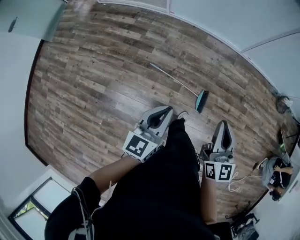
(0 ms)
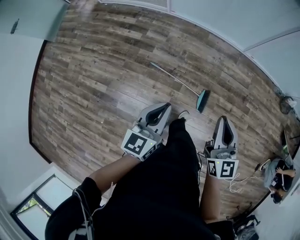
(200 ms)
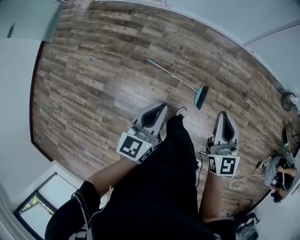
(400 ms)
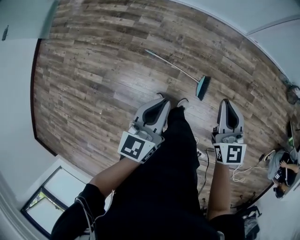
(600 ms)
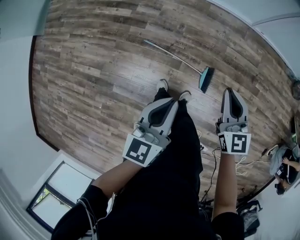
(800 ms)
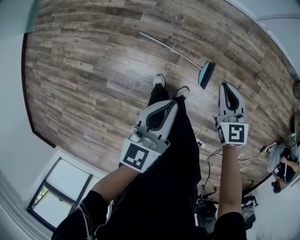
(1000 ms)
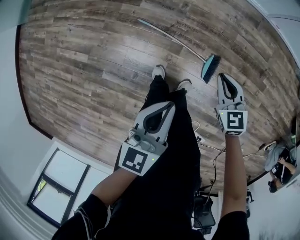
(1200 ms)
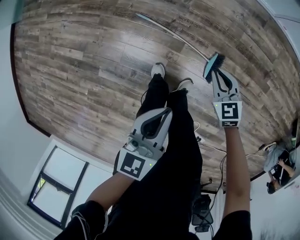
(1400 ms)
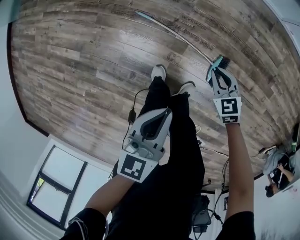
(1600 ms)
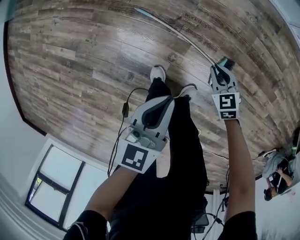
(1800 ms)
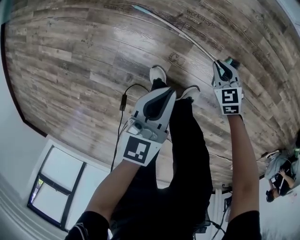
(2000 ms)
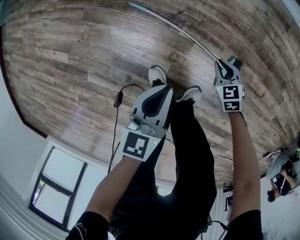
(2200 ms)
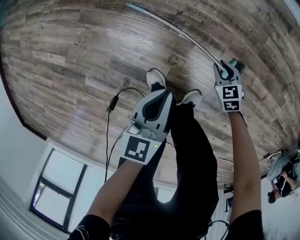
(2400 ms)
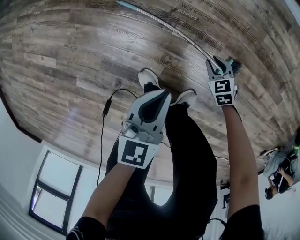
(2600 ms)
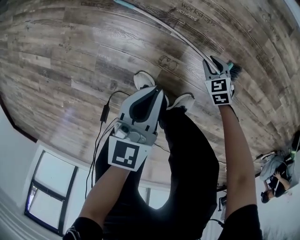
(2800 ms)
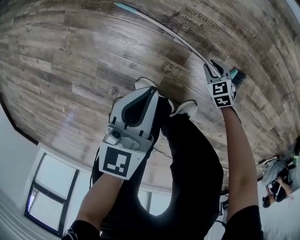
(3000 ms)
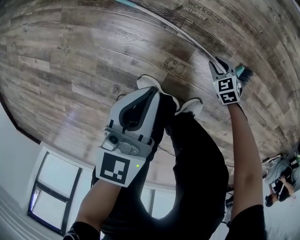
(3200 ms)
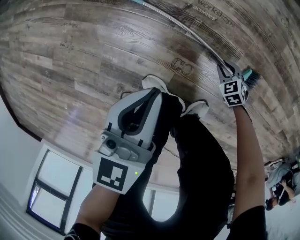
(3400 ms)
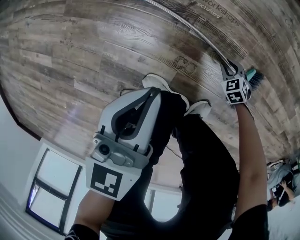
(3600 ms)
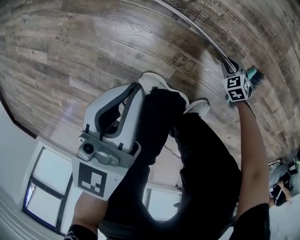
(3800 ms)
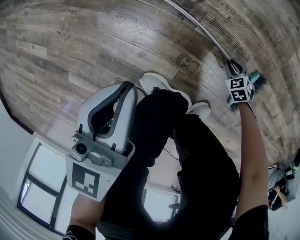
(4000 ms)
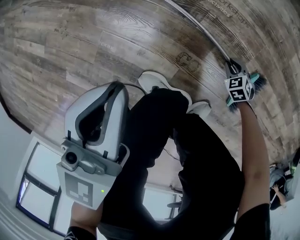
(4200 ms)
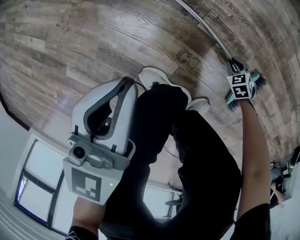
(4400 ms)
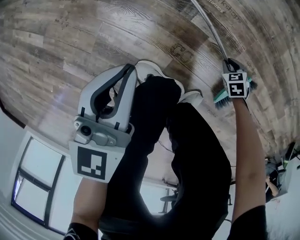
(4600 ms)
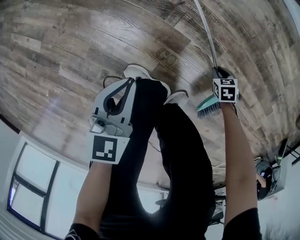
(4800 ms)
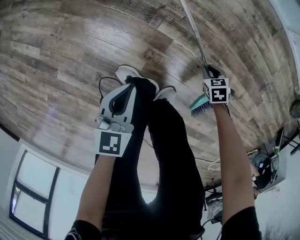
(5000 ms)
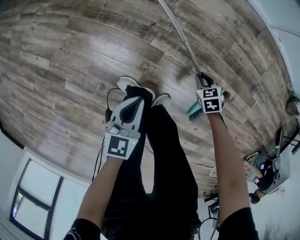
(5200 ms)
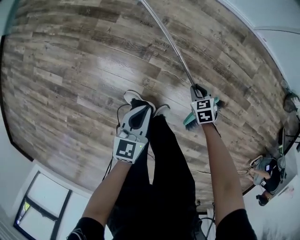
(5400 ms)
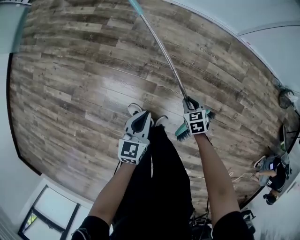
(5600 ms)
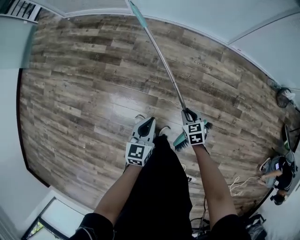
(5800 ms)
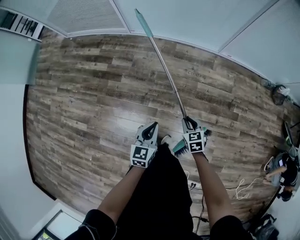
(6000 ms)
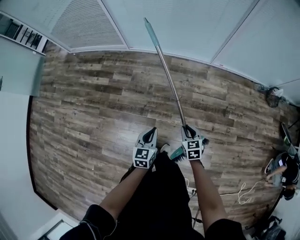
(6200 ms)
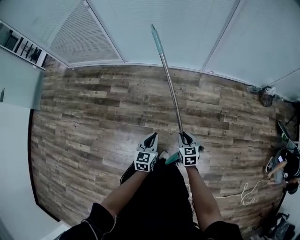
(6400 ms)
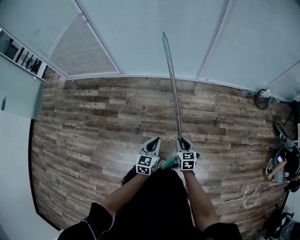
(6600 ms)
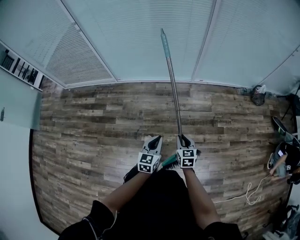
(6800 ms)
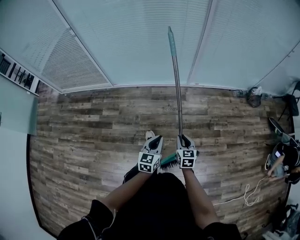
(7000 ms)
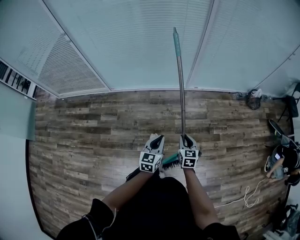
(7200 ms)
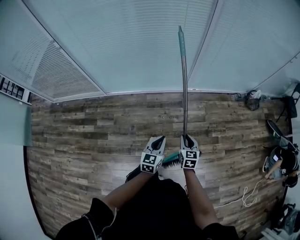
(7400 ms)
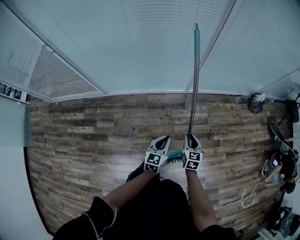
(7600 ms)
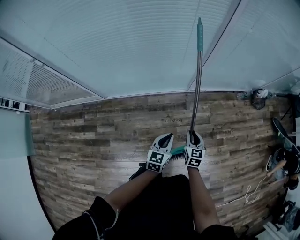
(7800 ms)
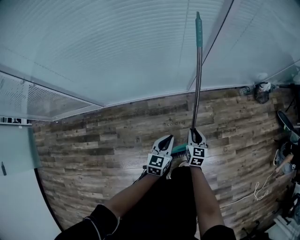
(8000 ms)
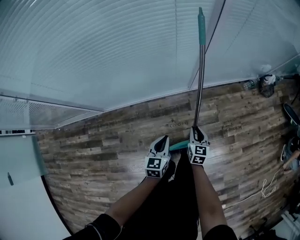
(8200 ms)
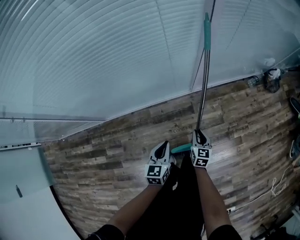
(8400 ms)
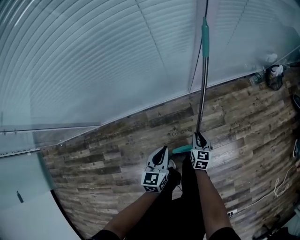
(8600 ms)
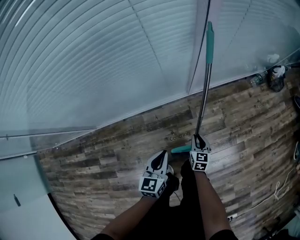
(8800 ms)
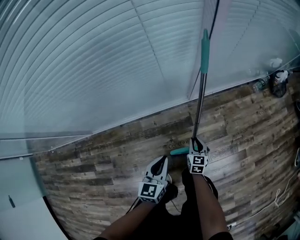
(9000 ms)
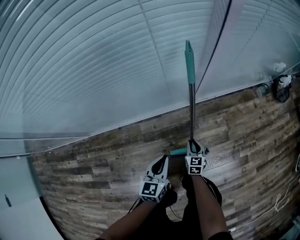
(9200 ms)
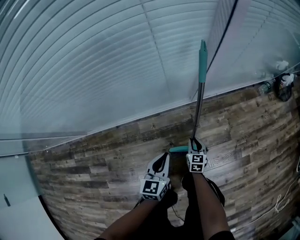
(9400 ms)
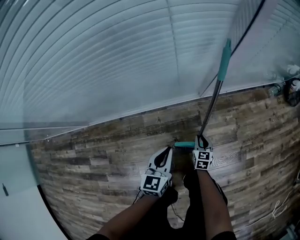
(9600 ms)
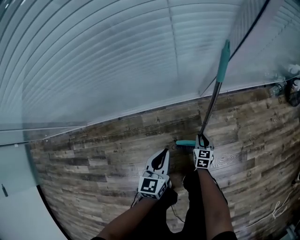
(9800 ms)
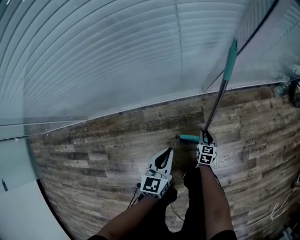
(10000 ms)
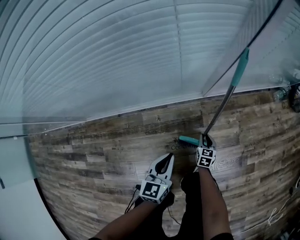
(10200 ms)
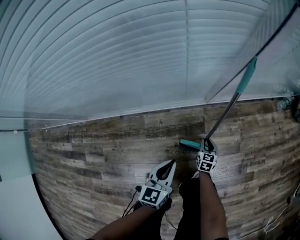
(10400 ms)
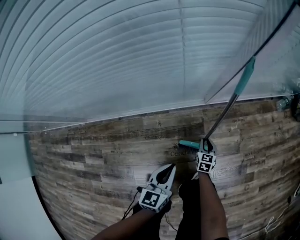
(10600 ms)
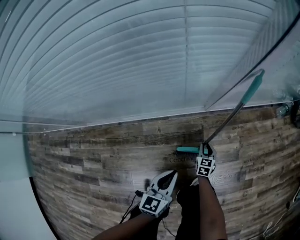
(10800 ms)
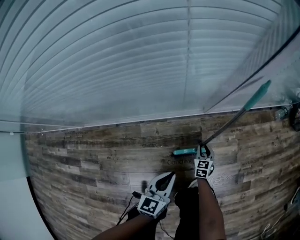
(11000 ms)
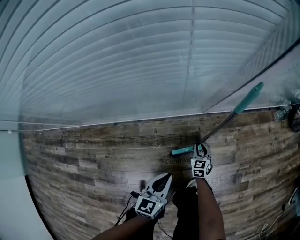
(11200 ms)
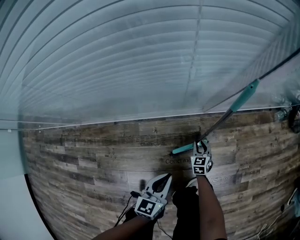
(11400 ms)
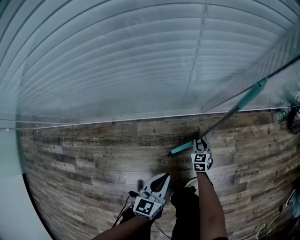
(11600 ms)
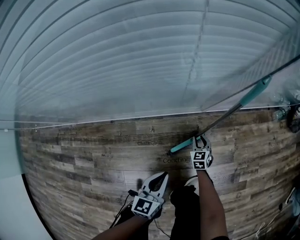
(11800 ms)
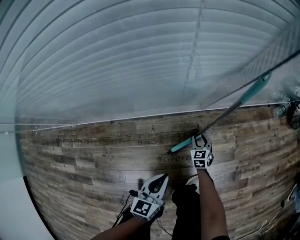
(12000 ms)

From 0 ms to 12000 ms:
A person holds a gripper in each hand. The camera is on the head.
From 0 ms to 1600 ms: The left gripper is displaced downward by some 30 cm, while the right gripper heads downward, covering about 60 cm, and angles its fingers downward, by some 40 degrees.
From 1600 ms to 3000 ms: The two grippers go some 30 cm downward.
From 3000 ms to 4400 ms: The left gripper shifts by about 10 cm. The right gripper is displaced downward by some 10 cm.
From 4400 ms to 6000 ms: The right gripper travels upward by roughly 60 cm, and swivels roughly 50 degrees; the left gripper heads upward, covering some 35 cm.
From 6000 ms to 7600 ms: The left gripper moves approximately 30 cm, and changes its angle by some 20 degrees. Meanwhile the right gripper moves some 30 cm, and turns by about 40 degrees.
From 7600 ms to 9000 ms: The left gripper goes some 30 cm forward and downward. Meanwhile the right gripper goes roughly 40 cm downward and forward.
From 9000 ms to 10400 ms: The two grippers go about 15 cm downward.
From 10400 ms to 12000 ms: The right gripper travels forward by roughly 5 cm, and swivels approximately 20 degrees.

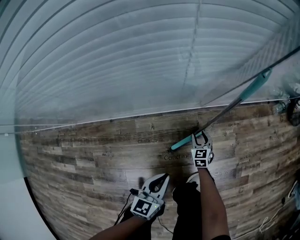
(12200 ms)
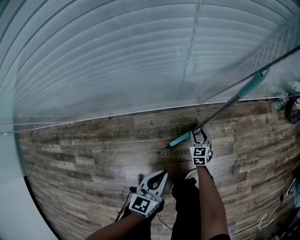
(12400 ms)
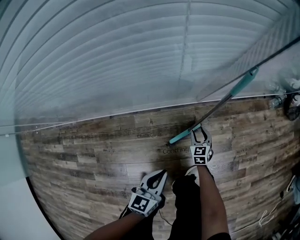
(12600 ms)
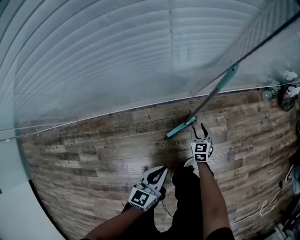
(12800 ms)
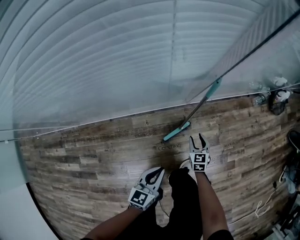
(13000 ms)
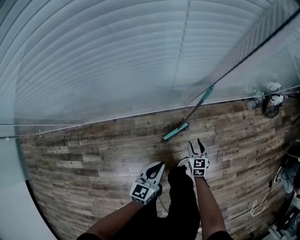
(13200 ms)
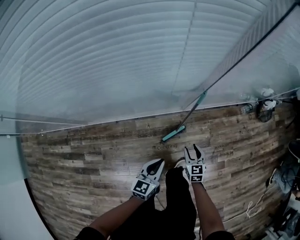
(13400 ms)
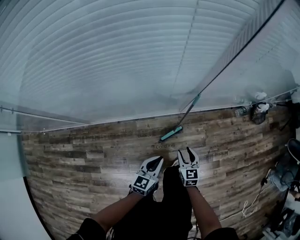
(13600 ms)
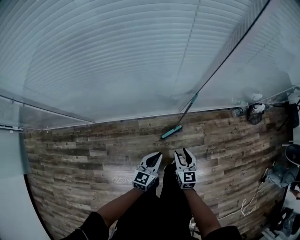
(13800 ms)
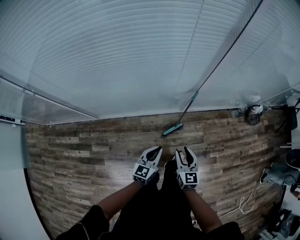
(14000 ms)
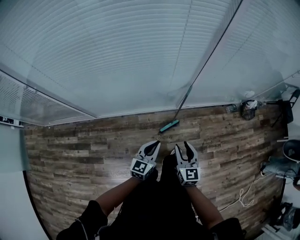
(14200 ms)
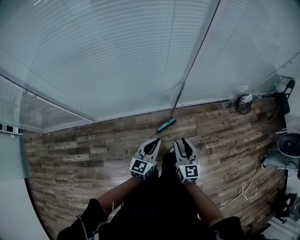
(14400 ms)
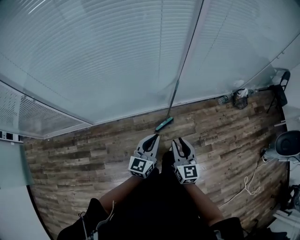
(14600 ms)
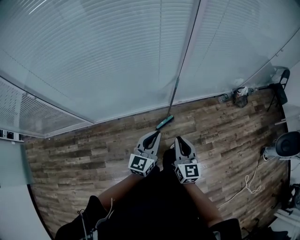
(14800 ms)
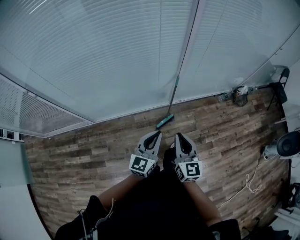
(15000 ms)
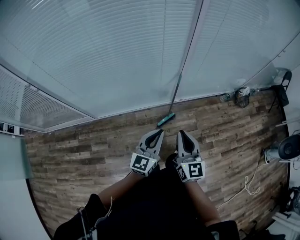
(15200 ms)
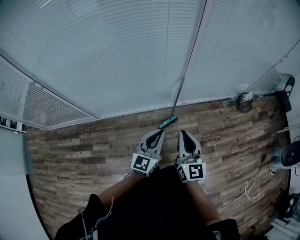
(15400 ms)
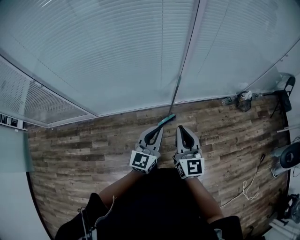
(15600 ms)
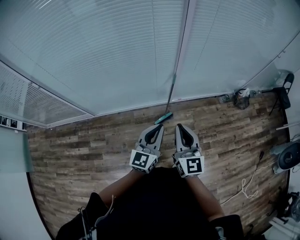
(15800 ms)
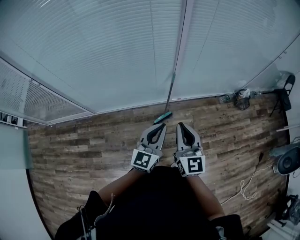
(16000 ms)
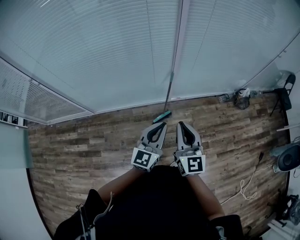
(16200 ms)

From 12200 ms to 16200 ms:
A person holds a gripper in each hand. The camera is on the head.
From 12200 ms to 13600 ms: The two grippers go approximately 40 cm upward.
From 13600 ms to 14800 ms: The left gripper goes about 25 cm upward. Meanwhile the right gripper shifts roughly 35 cm upward and backward, swivels roughly 20 degrees, and closes.
From 14800 ms to 16200 ms: The right gripper heads upward and to the right, covering some 15 cm. Meanwhile the left gripper travels to the right and upward by some 15 cm.

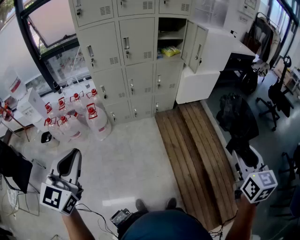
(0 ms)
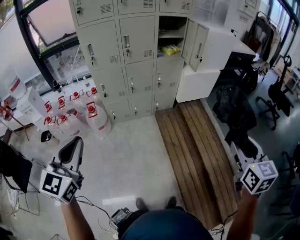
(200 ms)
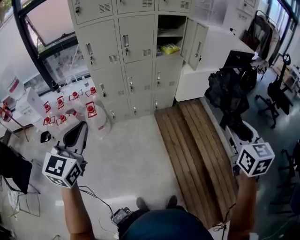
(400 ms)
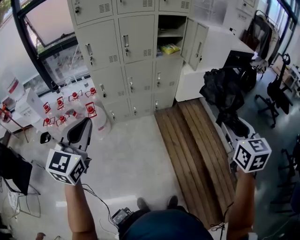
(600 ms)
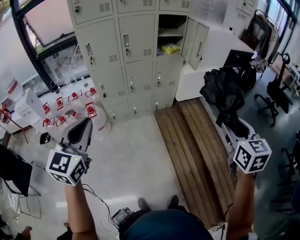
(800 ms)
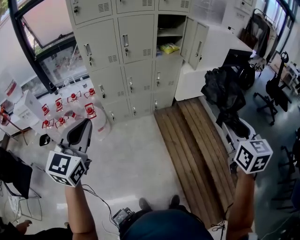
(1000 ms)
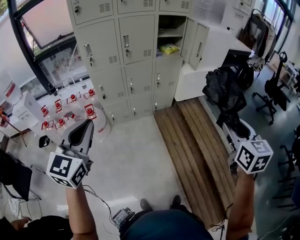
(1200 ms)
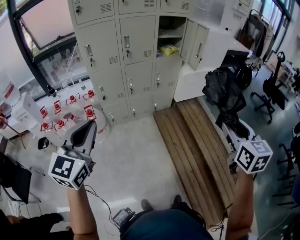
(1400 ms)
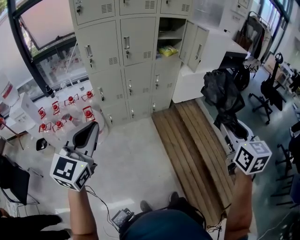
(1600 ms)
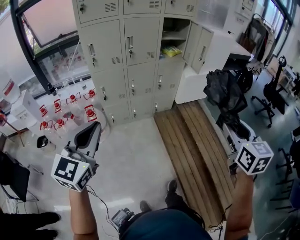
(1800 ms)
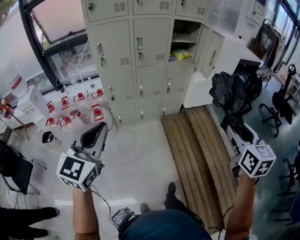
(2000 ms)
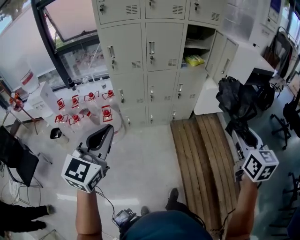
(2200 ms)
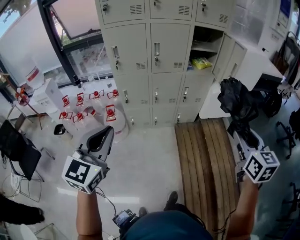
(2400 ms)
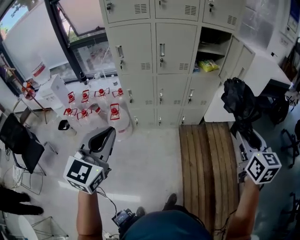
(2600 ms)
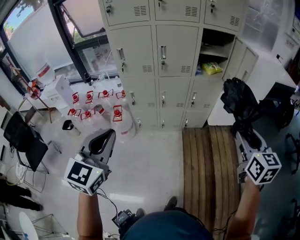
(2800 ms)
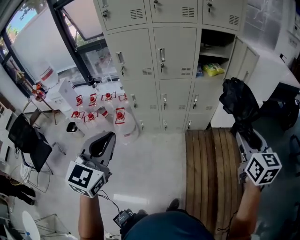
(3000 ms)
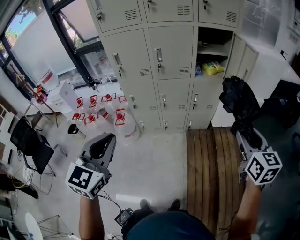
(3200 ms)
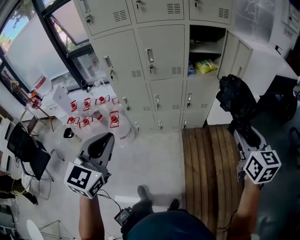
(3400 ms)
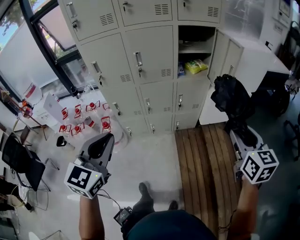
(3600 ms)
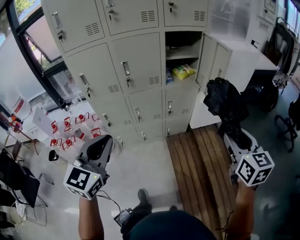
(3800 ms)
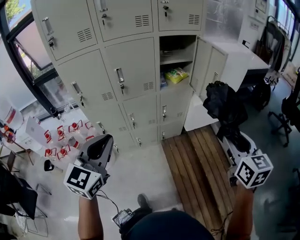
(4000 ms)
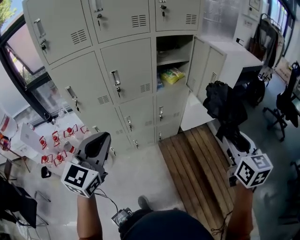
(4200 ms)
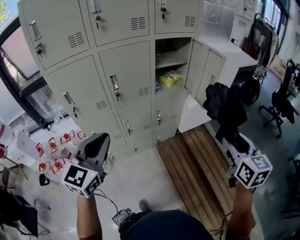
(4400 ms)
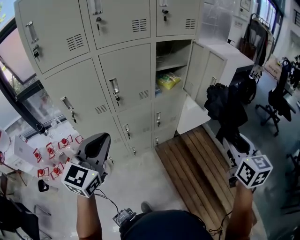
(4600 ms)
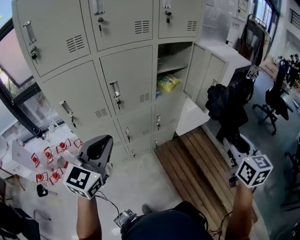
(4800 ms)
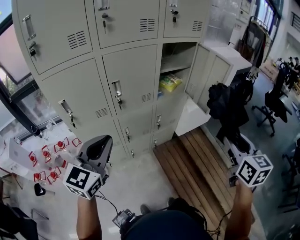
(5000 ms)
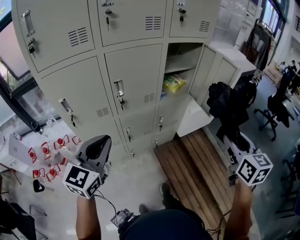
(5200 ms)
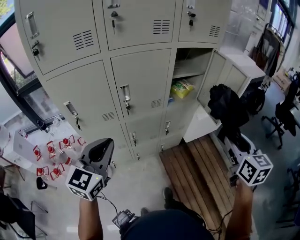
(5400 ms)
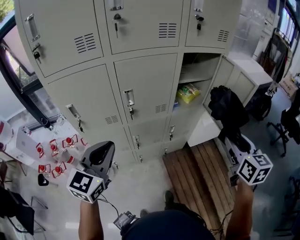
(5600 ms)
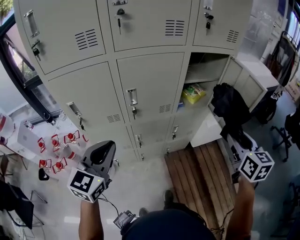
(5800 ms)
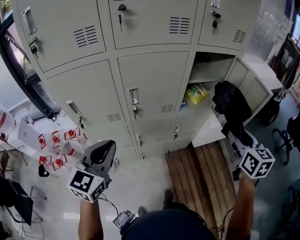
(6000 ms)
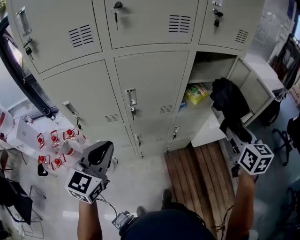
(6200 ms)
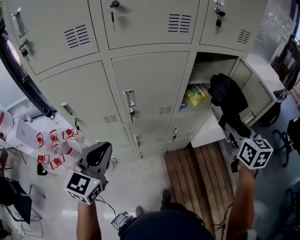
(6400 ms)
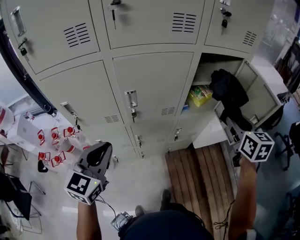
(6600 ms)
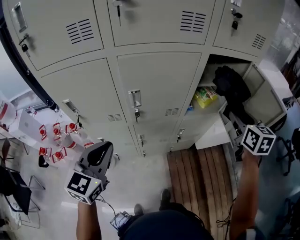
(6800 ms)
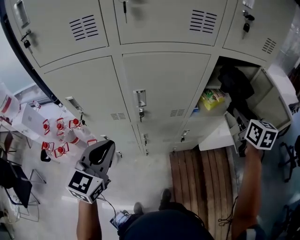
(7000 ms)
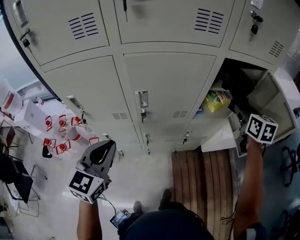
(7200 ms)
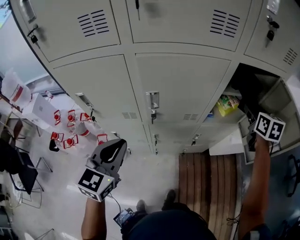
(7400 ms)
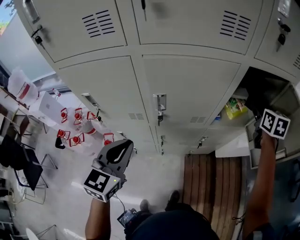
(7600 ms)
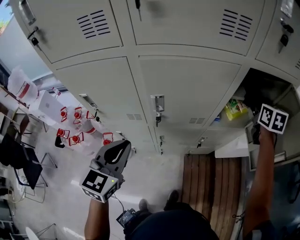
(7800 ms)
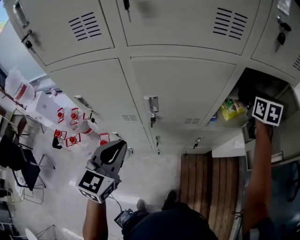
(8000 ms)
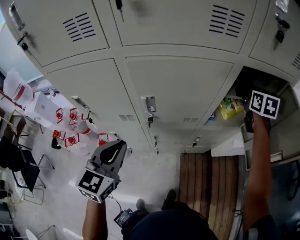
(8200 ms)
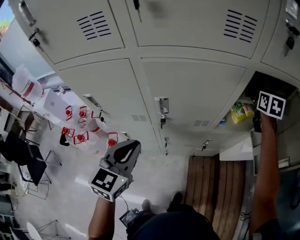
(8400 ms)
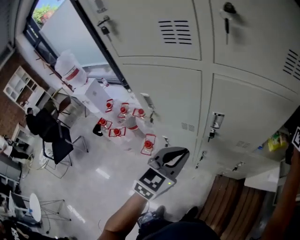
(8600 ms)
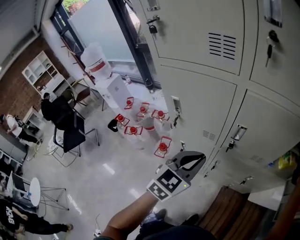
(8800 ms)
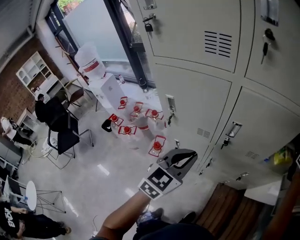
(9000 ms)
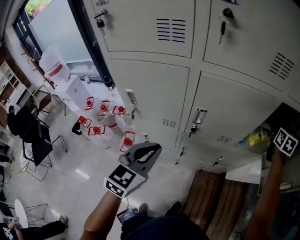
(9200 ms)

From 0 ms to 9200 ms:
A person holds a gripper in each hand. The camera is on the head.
From 0 ms to 1600 ms: The right gripper heads to the left and forward, covering approximately 15 cm. The left gripper goes some 10 cm forward.
From 1600 ms to 3000 ms: The right gripper shifts about 30 cm forward; the left gripper is displaced forward and to the right by approximately 20 cm, and turns by roughly 20 degrees.
From 3000 ms to 4600 ms: The left gripper moves about 30 cm, and turns by about 30 degrees. The right gripper moves roughly 10 cm, and swivels about 20 degrees.
From 4600 ms to 6200 ms: The left gripper shifts some 20 cm forward, to the left and downward. The right gripper travels forward by approximately 30 cm.
From 6200 ms to 7600 ms: The right gripper heads forward, covering about 30 cm; the left gripper is displaced forward by approximately 5 cm.
From 7600 ms to 9200 ms: The right gripper goes roughly 5 cm forward.
